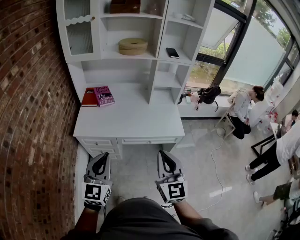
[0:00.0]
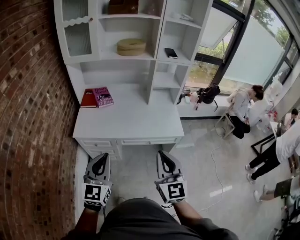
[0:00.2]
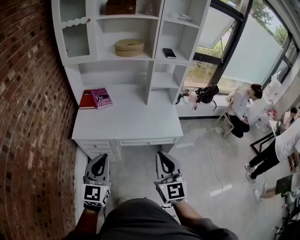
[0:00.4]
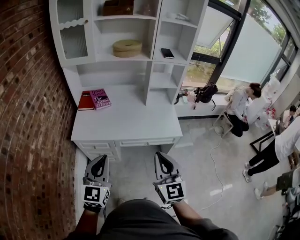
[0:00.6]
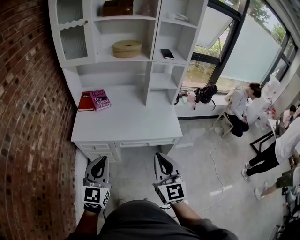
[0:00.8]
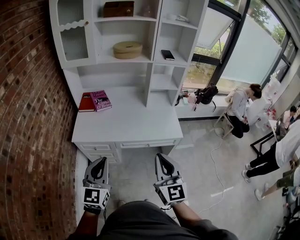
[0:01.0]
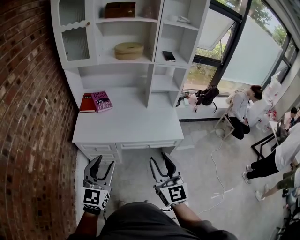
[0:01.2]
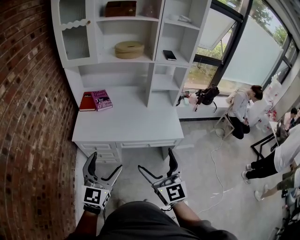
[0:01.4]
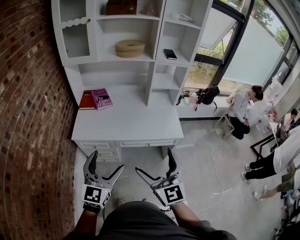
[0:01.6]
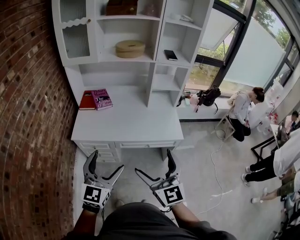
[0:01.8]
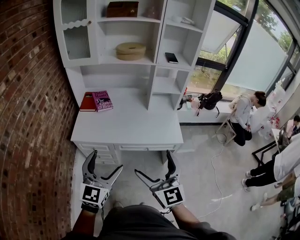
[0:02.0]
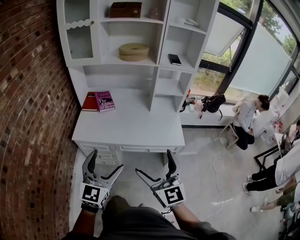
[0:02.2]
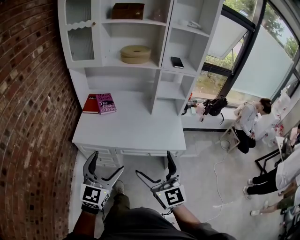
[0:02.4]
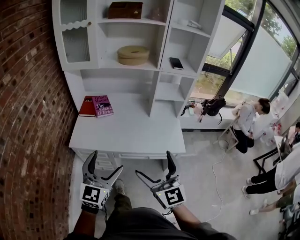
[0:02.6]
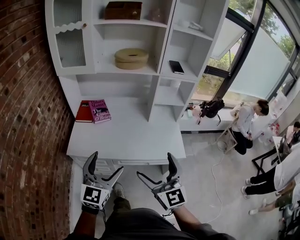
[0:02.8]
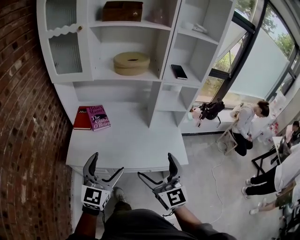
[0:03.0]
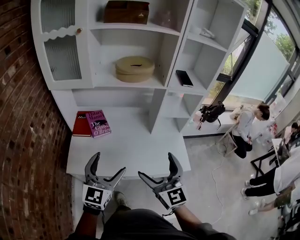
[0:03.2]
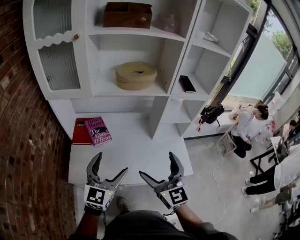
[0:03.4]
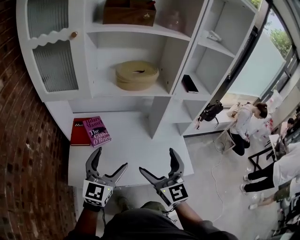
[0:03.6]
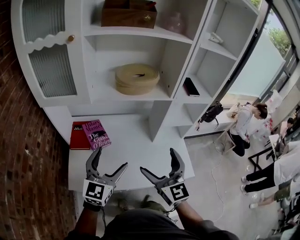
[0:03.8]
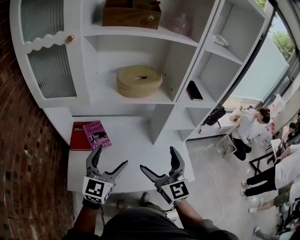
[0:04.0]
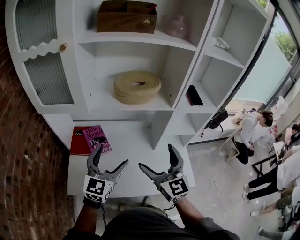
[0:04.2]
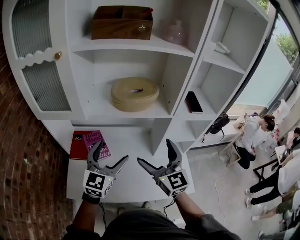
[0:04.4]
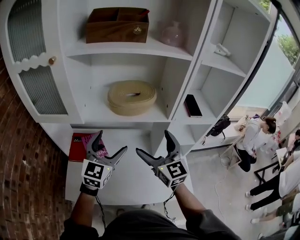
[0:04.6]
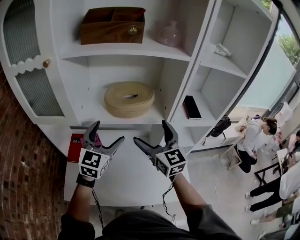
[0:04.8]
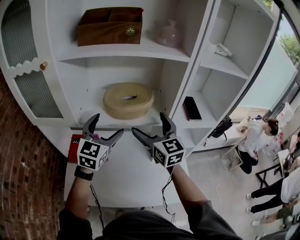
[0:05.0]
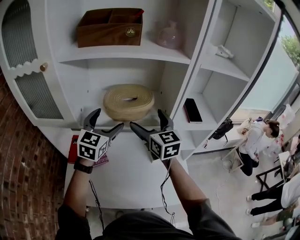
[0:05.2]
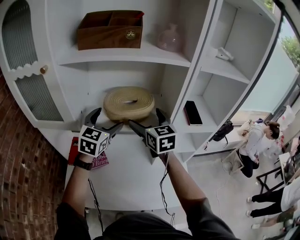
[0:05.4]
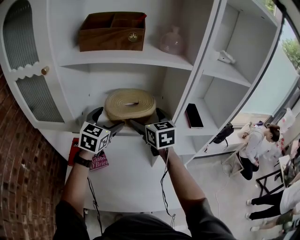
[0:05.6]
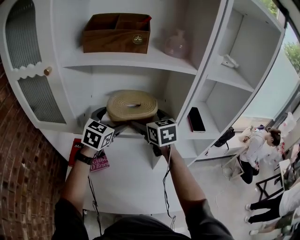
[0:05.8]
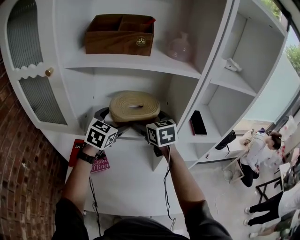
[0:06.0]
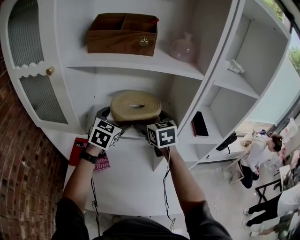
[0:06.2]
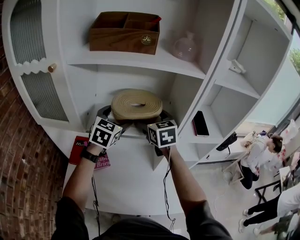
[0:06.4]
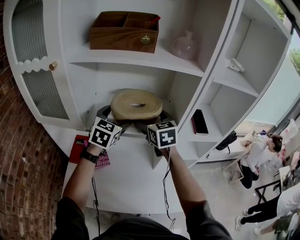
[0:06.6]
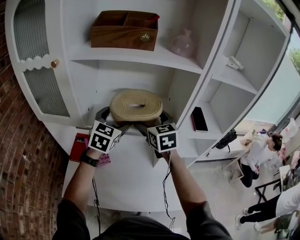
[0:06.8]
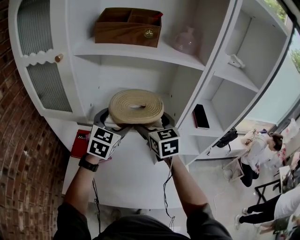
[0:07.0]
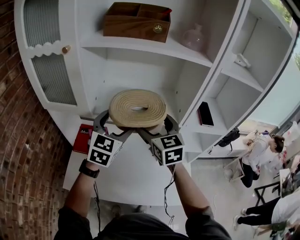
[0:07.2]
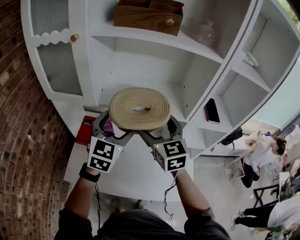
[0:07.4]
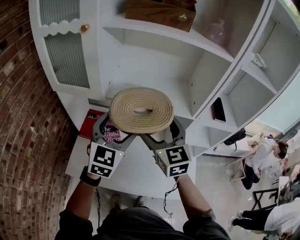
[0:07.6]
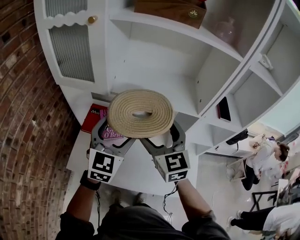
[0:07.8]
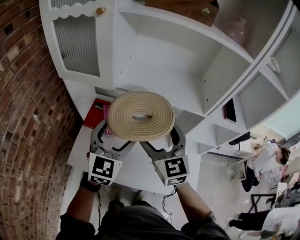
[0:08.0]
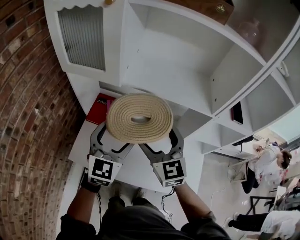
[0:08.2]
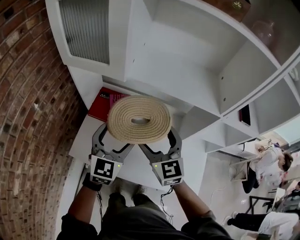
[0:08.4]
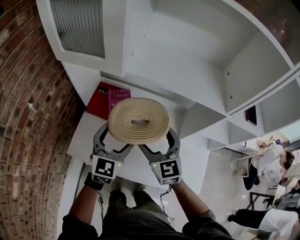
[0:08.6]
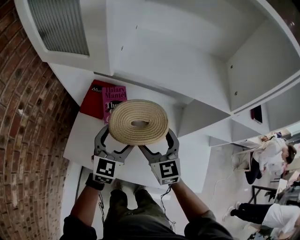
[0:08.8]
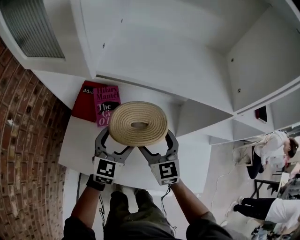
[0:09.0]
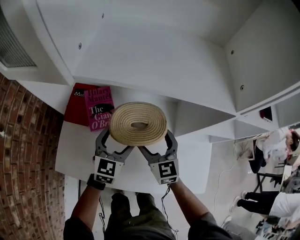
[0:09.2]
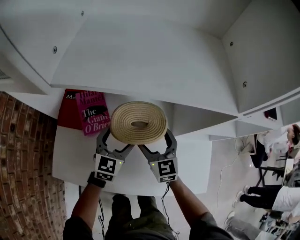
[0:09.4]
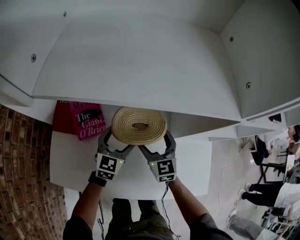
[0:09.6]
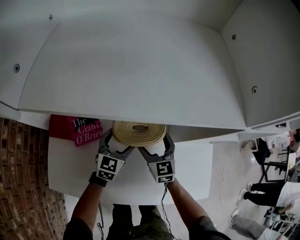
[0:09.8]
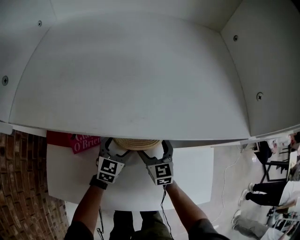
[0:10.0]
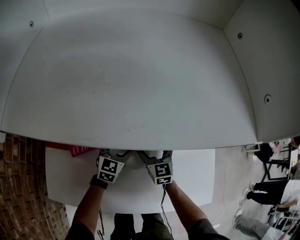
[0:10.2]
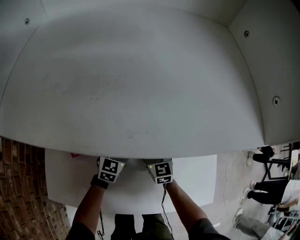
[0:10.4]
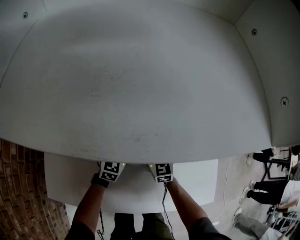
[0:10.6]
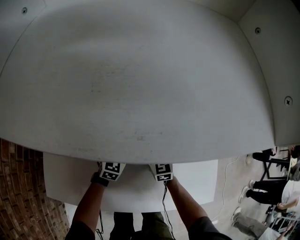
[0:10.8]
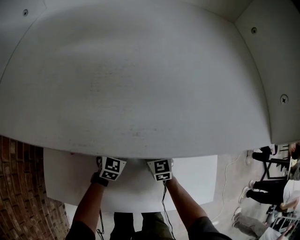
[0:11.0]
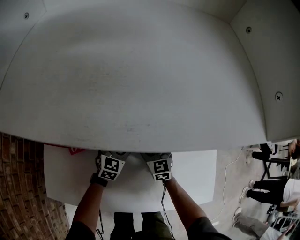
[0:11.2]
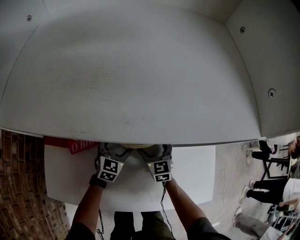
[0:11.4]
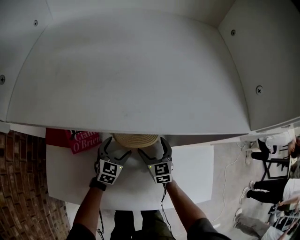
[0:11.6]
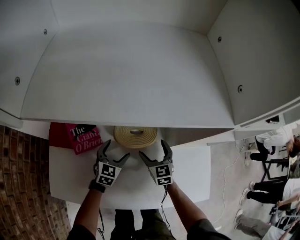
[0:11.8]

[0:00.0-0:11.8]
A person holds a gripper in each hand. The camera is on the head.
0:00.0 to 0:01.4: The left gripper opens. Meanwhile the right gripper opens its fingers.
0:01.4 to 0:03.0: Both grippers move forward, approximately 20 cm.
0:03.0 to 0:04.4: Both grippers move forward, about 30 cm.
0:04.4 to 0:06.0: The grippers both shift forward by some 25 cm. The right gripper changes its angle by some 20 degrees.
0:06.0 to 0:07.4: Both grippers move backward, about 15 cm.
0:07.4 to 0:08.8: The two grippers go some 20 cm downward.
0:08.8 to 0:10.4: The grippers both shift downward, forward and to the right by about 30 cm.
0:10.4 to 0:11.8: The left gripper ends up approximately 5 cm from where it was.

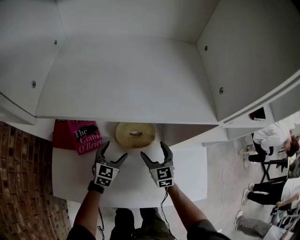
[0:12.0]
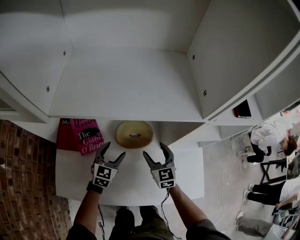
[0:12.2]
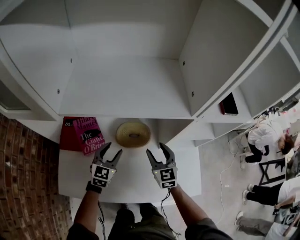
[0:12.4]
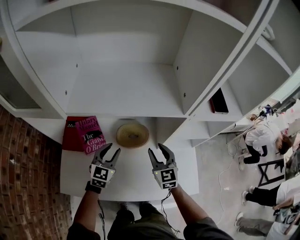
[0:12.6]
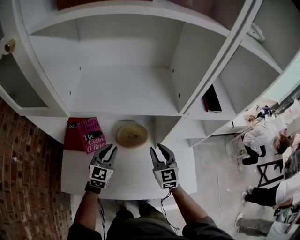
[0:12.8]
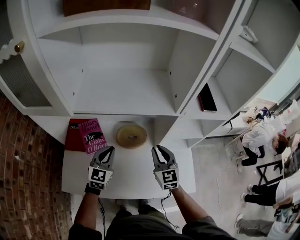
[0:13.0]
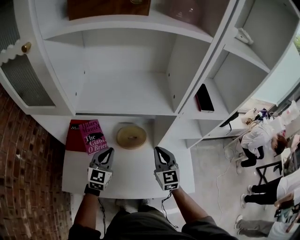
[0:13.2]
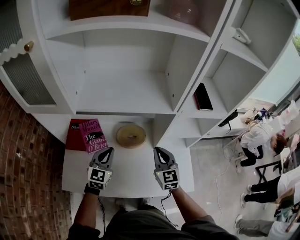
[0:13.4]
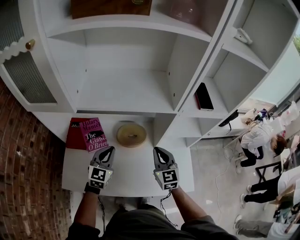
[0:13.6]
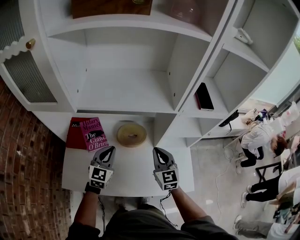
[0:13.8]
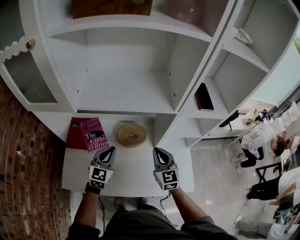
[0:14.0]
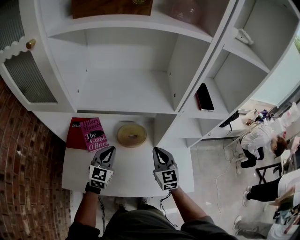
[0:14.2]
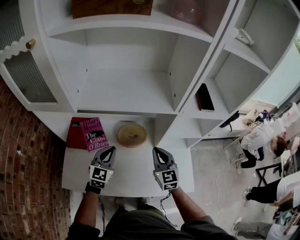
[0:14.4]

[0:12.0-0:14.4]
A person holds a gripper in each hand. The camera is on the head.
0:12.0 to 0:13.2: The grippers both shift upward by some 20 cm. The left gripper closes its fingers. Meanwhile the right gripper closes up.
0:13.2 to 0:14.4: The grippers stay close to where they were, moving slightly.

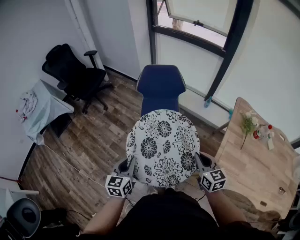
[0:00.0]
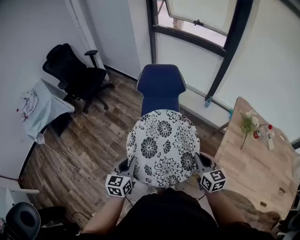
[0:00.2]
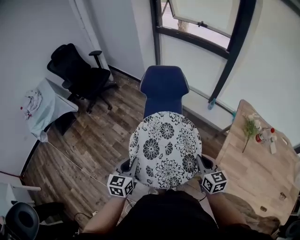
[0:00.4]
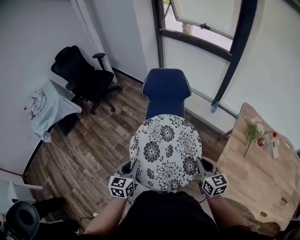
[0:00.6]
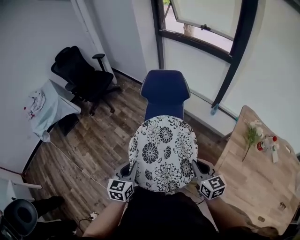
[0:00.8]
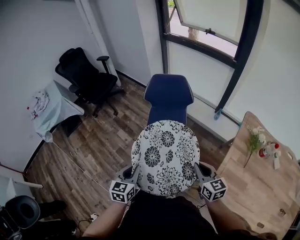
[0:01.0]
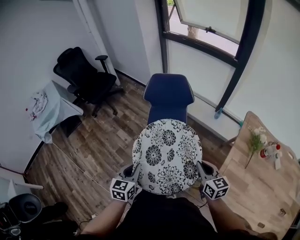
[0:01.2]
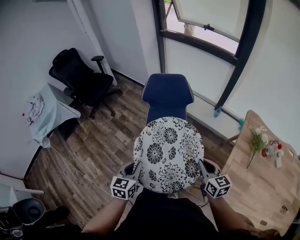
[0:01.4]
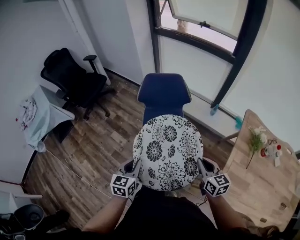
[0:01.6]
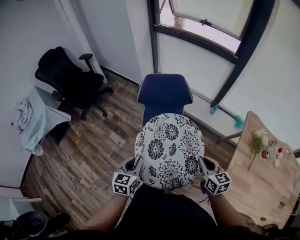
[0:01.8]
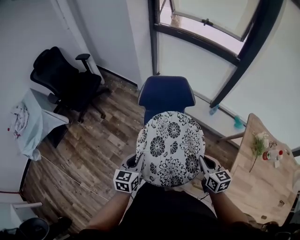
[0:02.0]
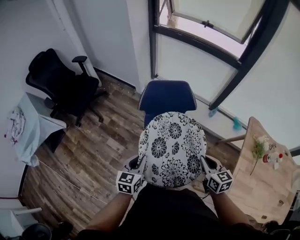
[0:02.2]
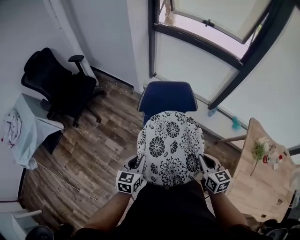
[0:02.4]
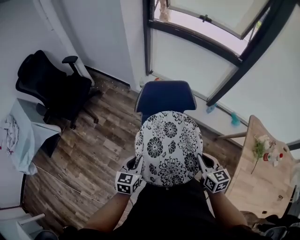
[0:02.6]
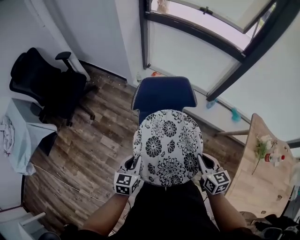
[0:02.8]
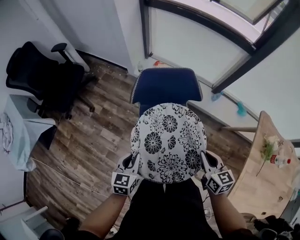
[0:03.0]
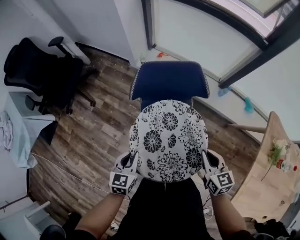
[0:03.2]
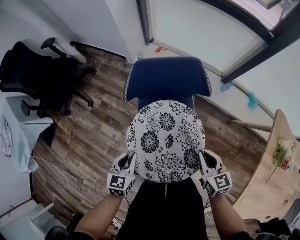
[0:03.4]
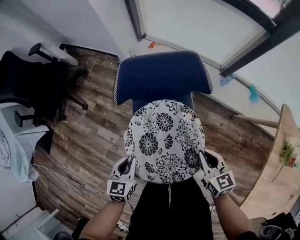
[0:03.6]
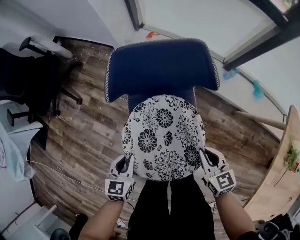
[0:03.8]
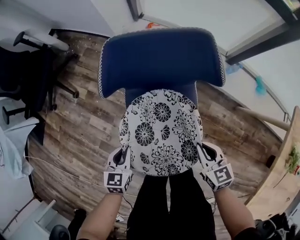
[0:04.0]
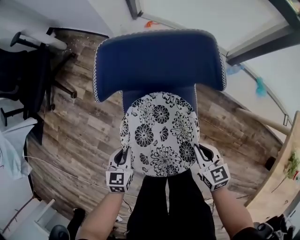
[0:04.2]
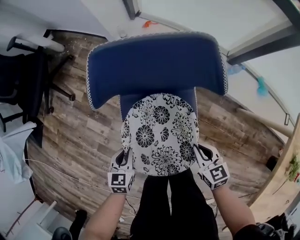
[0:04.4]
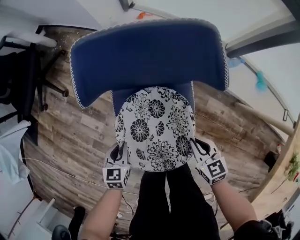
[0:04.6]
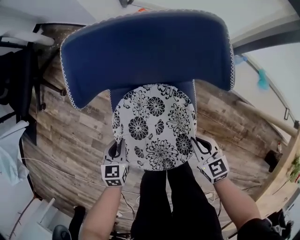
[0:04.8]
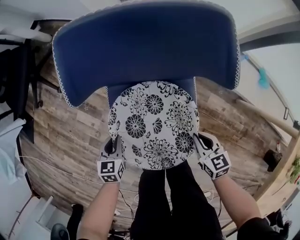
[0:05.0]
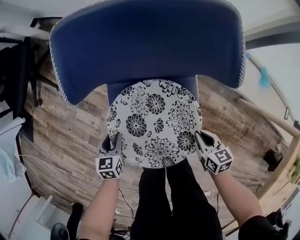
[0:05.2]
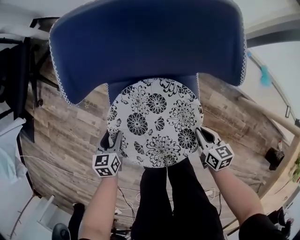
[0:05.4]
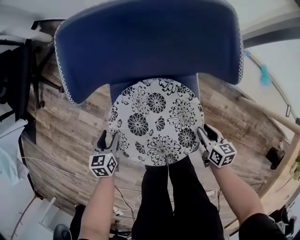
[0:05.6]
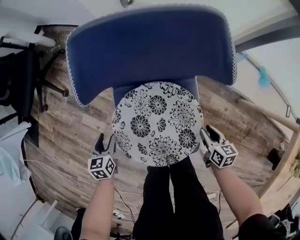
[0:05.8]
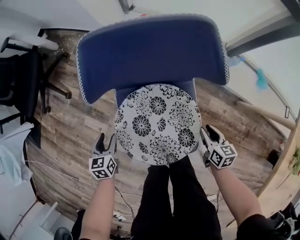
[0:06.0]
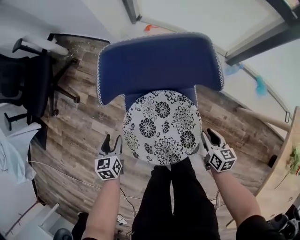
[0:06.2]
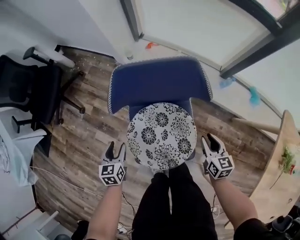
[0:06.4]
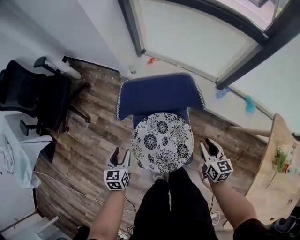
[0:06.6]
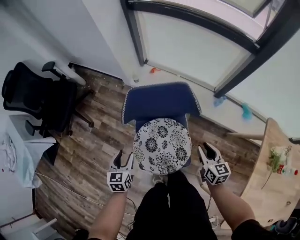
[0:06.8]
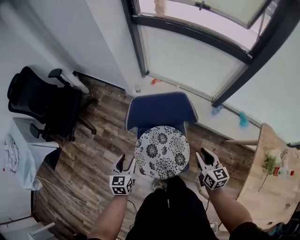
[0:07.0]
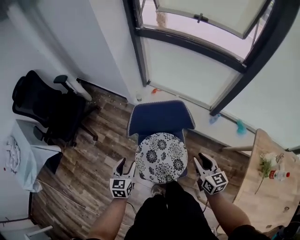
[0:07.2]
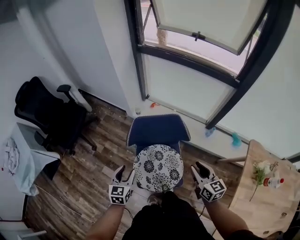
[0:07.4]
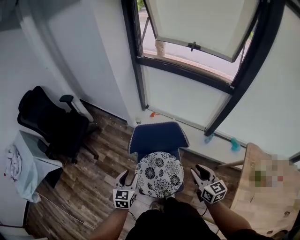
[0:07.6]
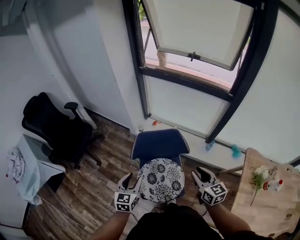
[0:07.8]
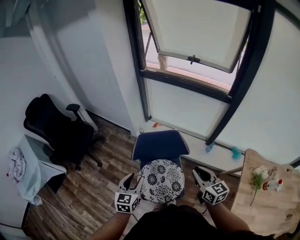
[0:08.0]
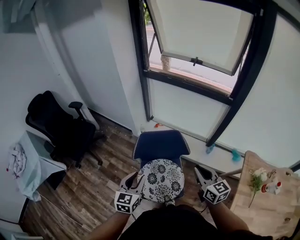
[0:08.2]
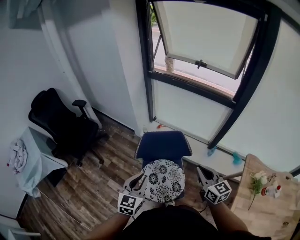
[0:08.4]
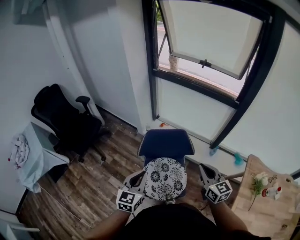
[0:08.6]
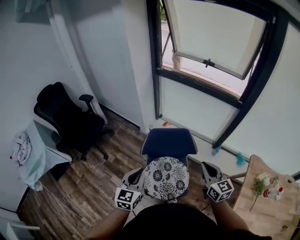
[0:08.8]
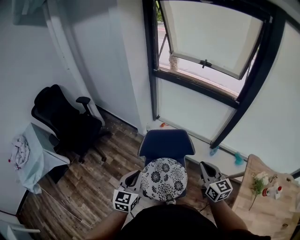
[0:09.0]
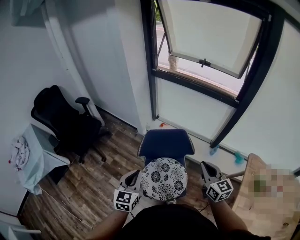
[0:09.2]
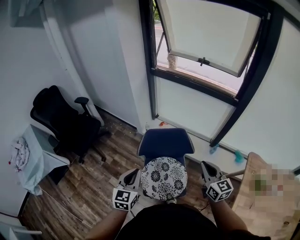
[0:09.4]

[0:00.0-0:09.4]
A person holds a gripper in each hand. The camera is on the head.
0:00.0 to 0:01.6: Both grippers travel together forward, some 10 cm.
0:01.6 to 0:03.2: The two grippers go some 25 cm forward and downward.
0:03.2 to 0:04.8: The two grippers go some 30 cm downward.
0:04.8 to 0:06.2: The left gripper travels to the left and upward by some 10 cm, and opens; the right gripper goes approximately 5 cm to the right, reaches approximately 10 cm downward, then returns, turns by roughly 30 degrees, and opens its fingers.
0:06.2 to 0:07.8: Both grippers move upward, approximately 40 cm. The left gripper swivels approximately 30 degrees. The right gripper swivels about 30 degrees.
0:07.8 to 0:09.4: Both grippers move upward, approximately 5 cm. The right gripper closes. The left gripper closes its fingers.
